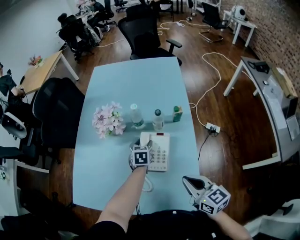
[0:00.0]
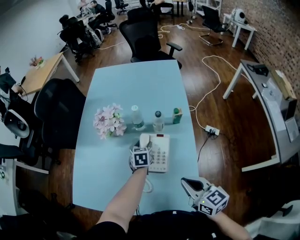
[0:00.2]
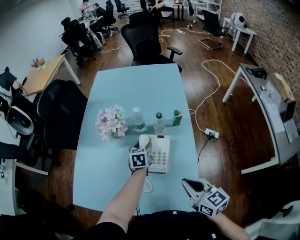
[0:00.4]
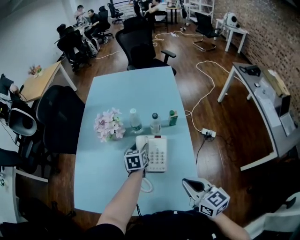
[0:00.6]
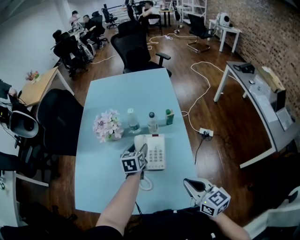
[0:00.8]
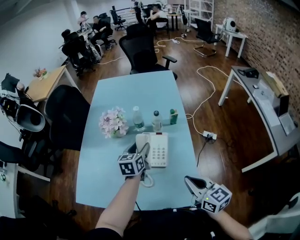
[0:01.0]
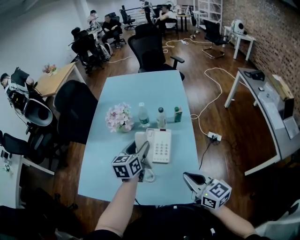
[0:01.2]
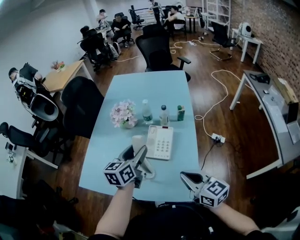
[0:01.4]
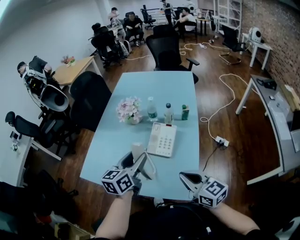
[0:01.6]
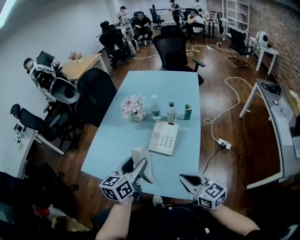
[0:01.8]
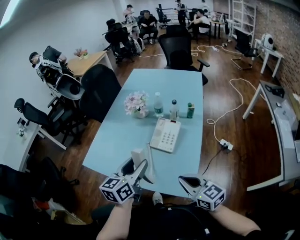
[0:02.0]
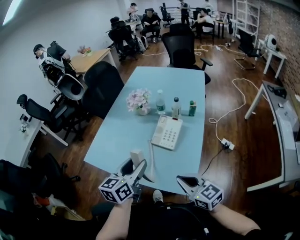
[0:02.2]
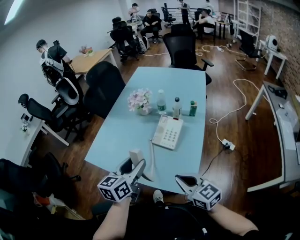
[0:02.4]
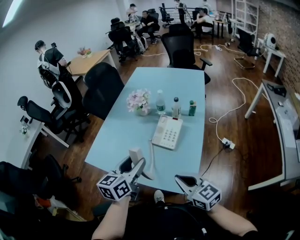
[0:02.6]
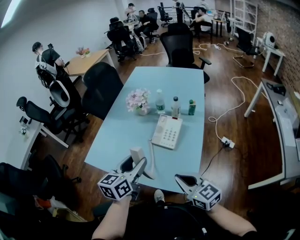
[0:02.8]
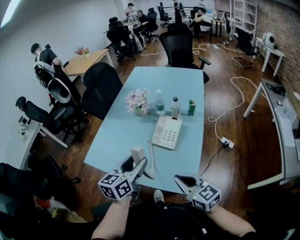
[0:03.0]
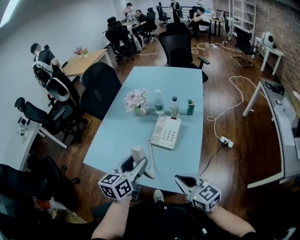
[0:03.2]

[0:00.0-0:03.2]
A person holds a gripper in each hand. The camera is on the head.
0:00.0 to 0:01.6: The left gripper goes some 35 cm backward and upward, and tips its fingers upward by approximately 30 degrees; the right gripper shifts some 10 cm backward and upward.
0:01.6 to 0:03.2: The left gripper goes roughly 10 cm backward. Meanwhile the right gripper shifts by approximately 5 cm.

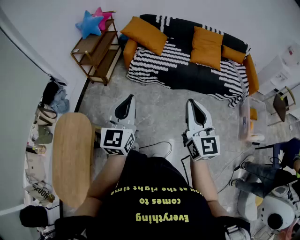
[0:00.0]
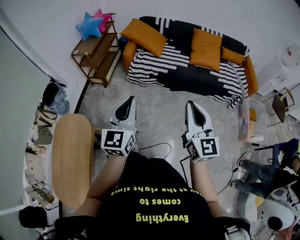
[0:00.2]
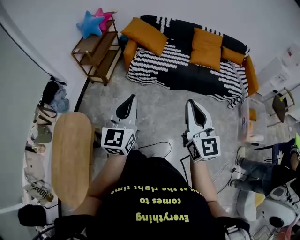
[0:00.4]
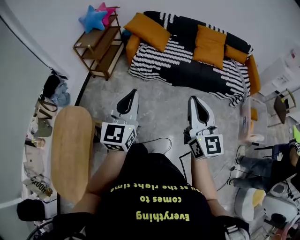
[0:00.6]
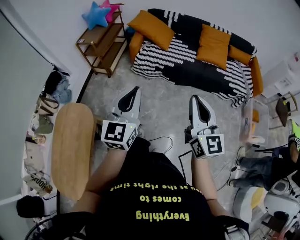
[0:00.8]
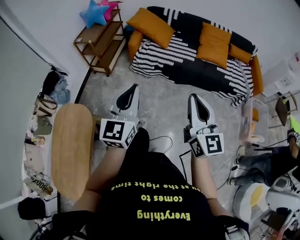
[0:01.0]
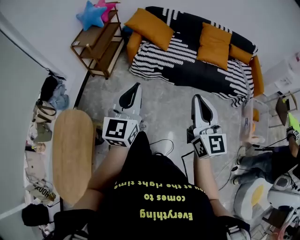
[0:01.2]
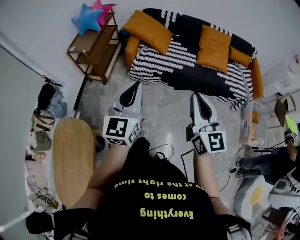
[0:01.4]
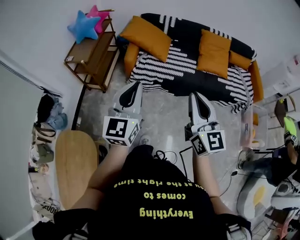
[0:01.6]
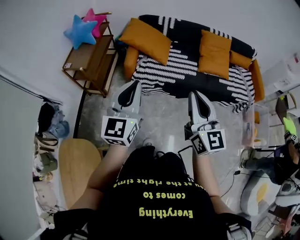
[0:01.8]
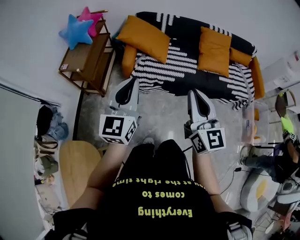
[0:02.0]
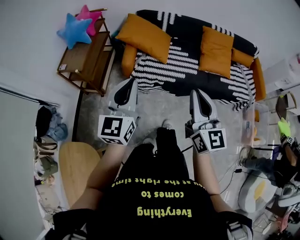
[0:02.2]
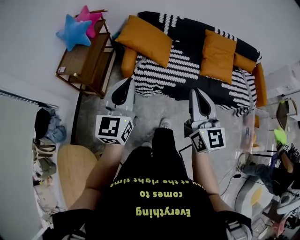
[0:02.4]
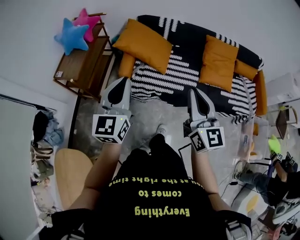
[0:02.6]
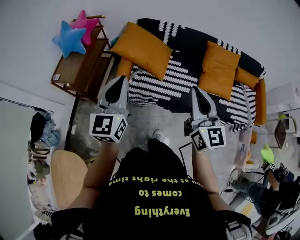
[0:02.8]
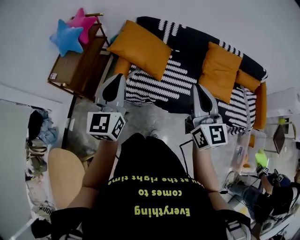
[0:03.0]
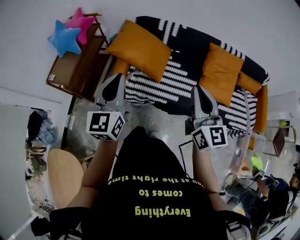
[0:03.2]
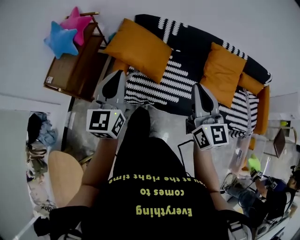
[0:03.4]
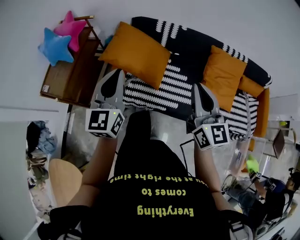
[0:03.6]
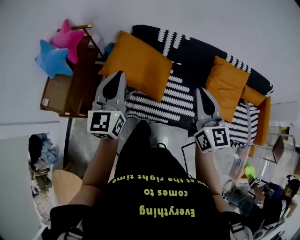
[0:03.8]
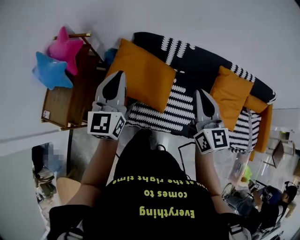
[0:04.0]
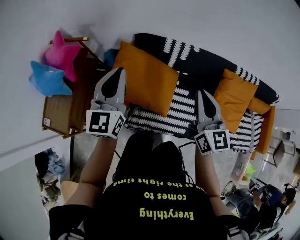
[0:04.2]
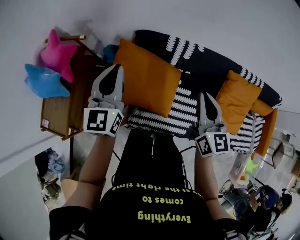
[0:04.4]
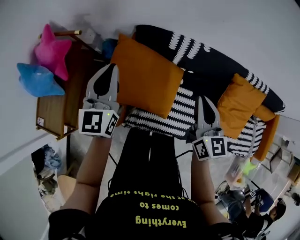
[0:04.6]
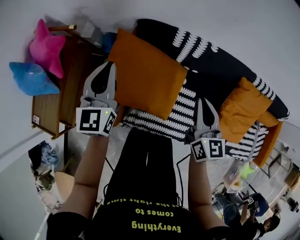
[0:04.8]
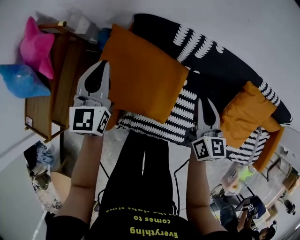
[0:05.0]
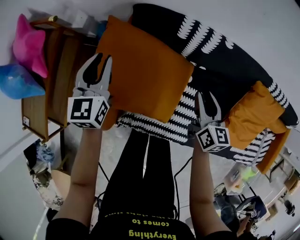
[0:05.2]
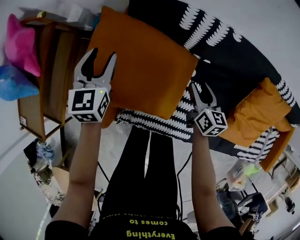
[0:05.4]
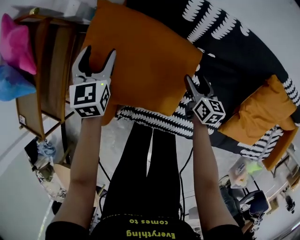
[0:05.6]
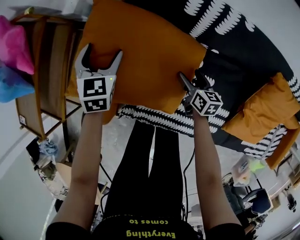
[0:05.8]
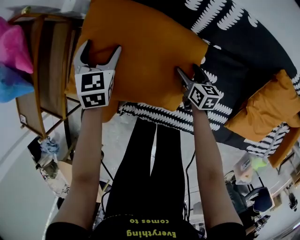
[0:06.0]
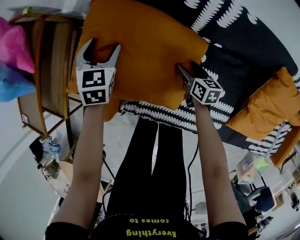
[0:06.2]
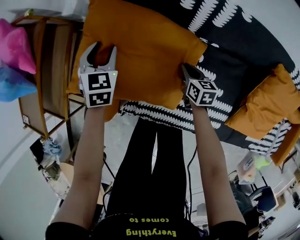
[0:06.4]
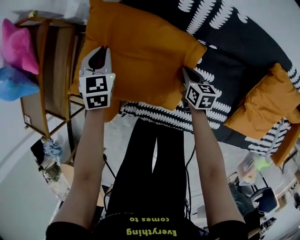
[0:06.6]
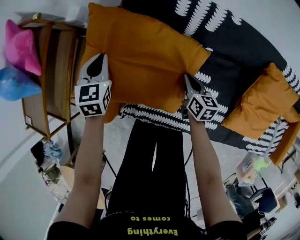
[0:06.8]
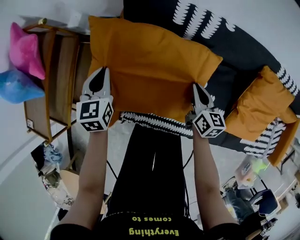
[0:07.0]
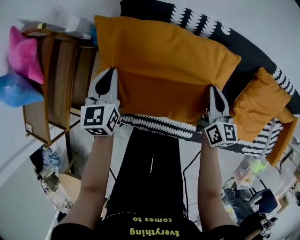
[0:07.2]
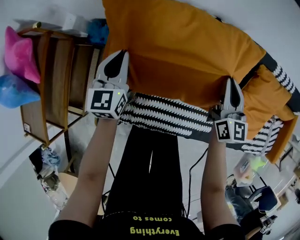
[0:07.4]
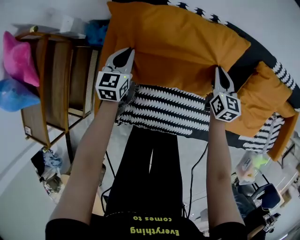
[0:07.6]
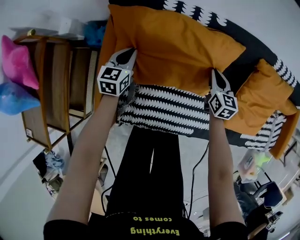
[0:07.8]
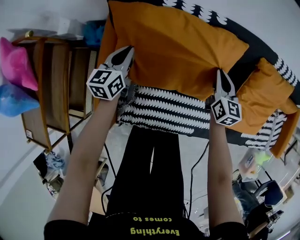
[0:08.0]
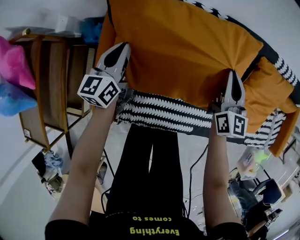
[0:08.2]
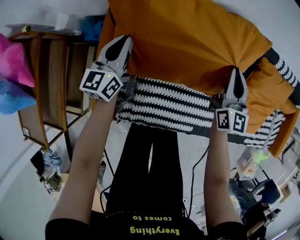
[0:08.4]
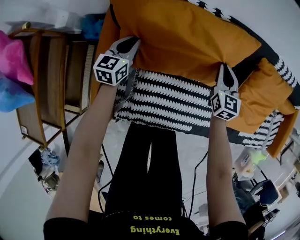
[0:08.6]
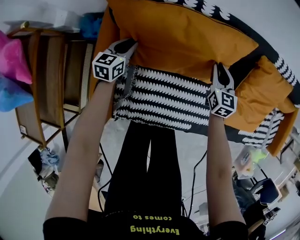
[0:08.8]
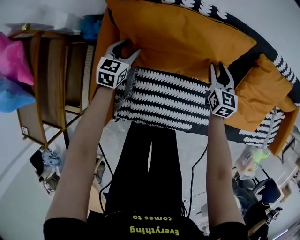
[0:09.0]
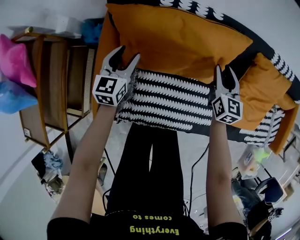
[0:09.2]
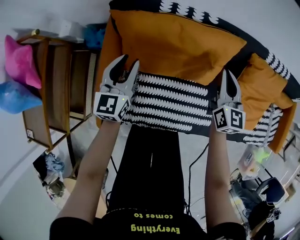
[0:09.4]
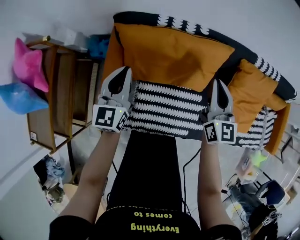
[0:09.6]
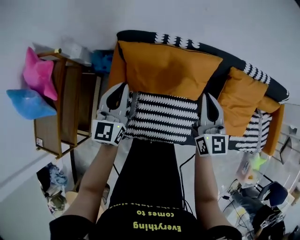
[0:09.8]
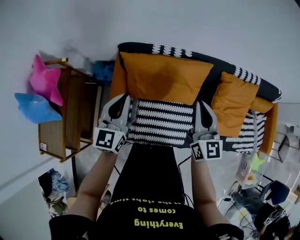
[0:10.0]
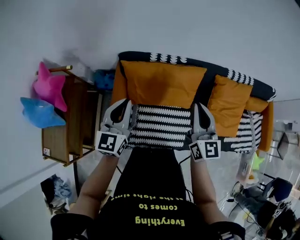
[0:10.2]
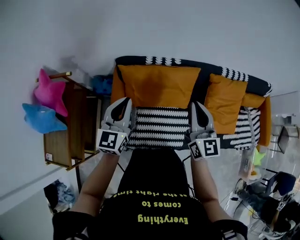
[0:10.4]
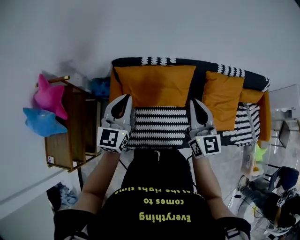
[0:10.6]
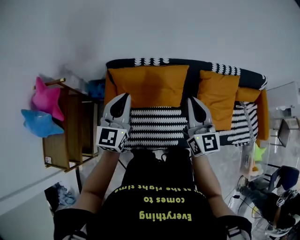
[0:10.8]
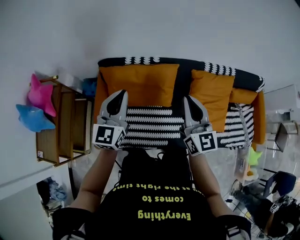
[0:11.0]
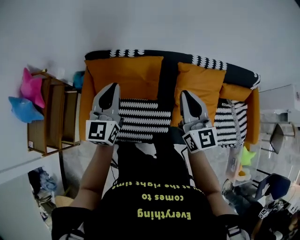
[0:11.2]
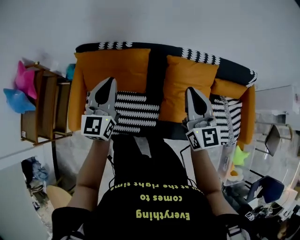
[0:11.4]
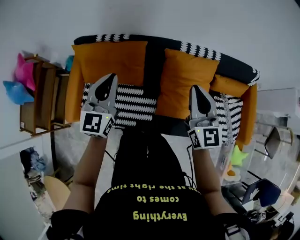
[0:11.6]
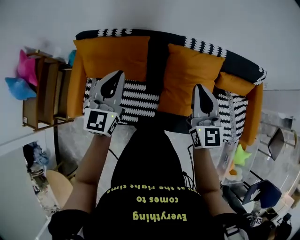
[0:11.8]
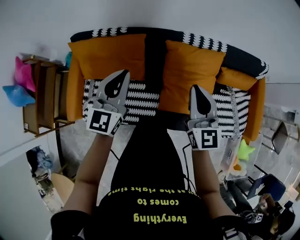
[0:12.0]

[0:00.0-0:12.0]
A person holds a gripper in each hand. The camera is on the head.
0:00.0 to 0:01.6: The left gripper travels forward by some 25 cm. Meanwhile the right gripper shifts about 25 cm forward and to the left.
0:01.6 to 0:03.0: The two grippers go some 35 cm forward.
0:03.0 to 0:04.4: The two grippers travel together, forward, approximately 50 cm.
0:04.4 to 0:06.0: The two grippers go about 50 cm downward. The left gripper points its fingers some 40 degrees further downward, and opens up, while the right gripper rotates some 40 degrees, and opens.
0:06.0 to 0:07.6: The right gripper goes approximately 15 cm upward, rotates roughly 30 degrees, and closes. Meanwhile the left gripper reaches about 10 cm upward, then returns, changes its angle by some 30 degrees, and closes its fingers.
0:07.6 to 0:09.0: The left gripper moves downward, some 5 cm, and opens up, while the right gripper moves up and down over roughly 15 cm, changing direction 2 times, and opens its fingers.
0:09.0 to 0:10.4: Both grippers travel together upward, approximately 40 cm. The right gripper changes its angle by roughly 30 degrees, and closes up. The left gripper changes its angle by some 30 degrees, and closes its fingers.
0:10.4 to 0:12.0: The two grippers go approximately 40 cm to the right.

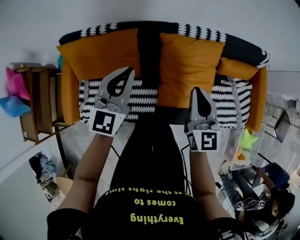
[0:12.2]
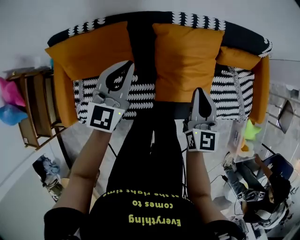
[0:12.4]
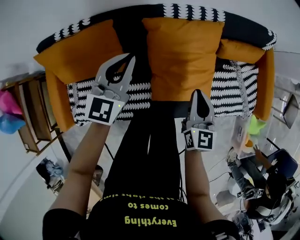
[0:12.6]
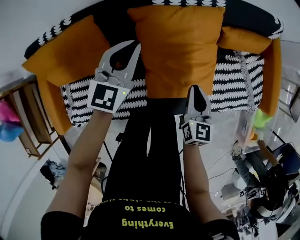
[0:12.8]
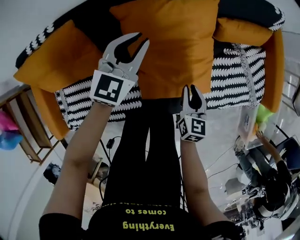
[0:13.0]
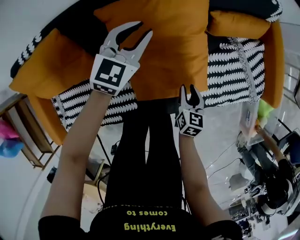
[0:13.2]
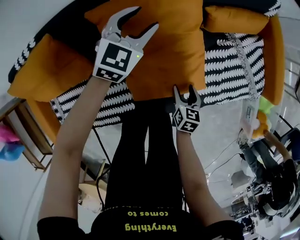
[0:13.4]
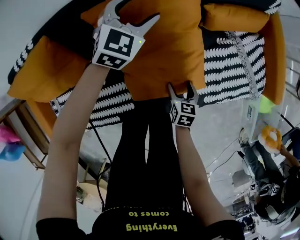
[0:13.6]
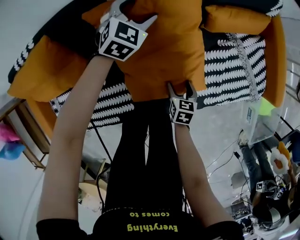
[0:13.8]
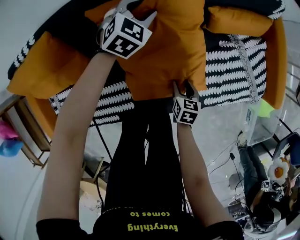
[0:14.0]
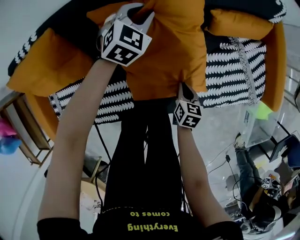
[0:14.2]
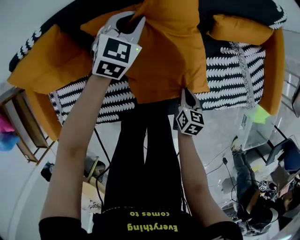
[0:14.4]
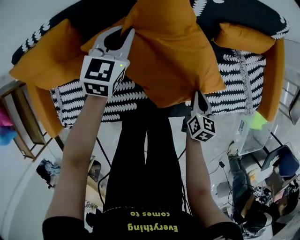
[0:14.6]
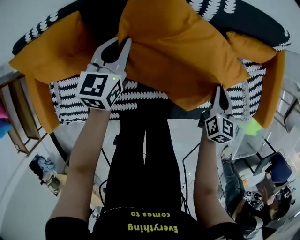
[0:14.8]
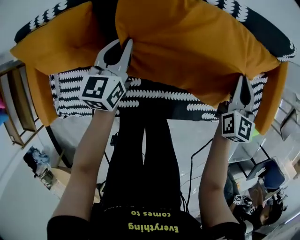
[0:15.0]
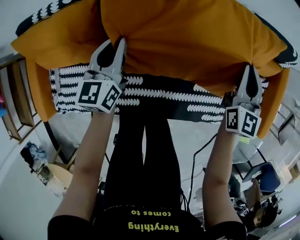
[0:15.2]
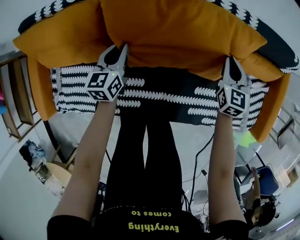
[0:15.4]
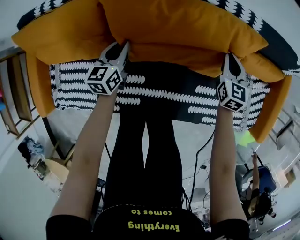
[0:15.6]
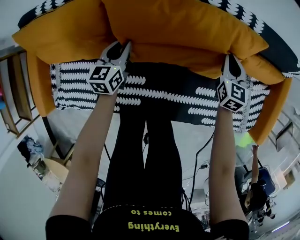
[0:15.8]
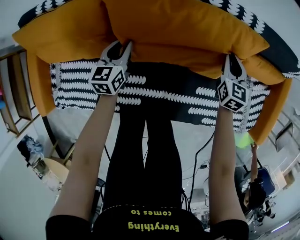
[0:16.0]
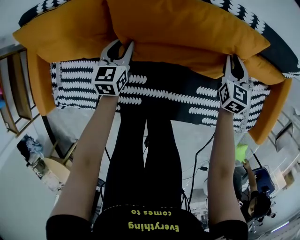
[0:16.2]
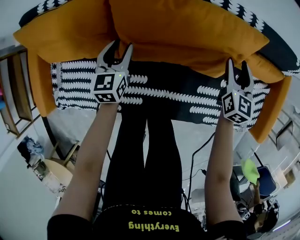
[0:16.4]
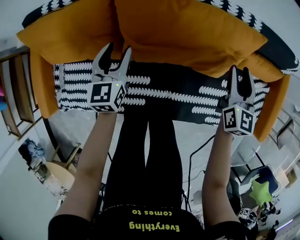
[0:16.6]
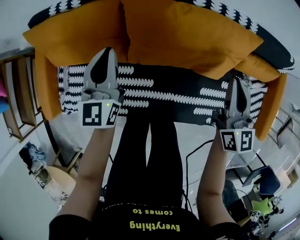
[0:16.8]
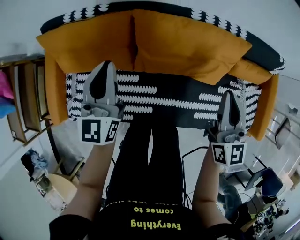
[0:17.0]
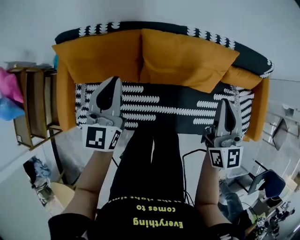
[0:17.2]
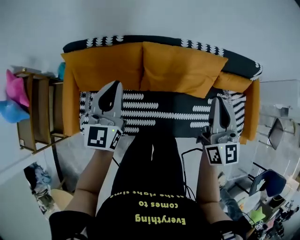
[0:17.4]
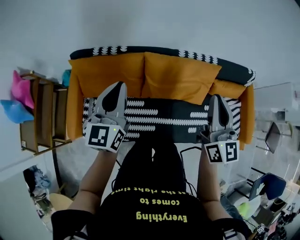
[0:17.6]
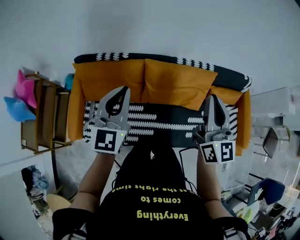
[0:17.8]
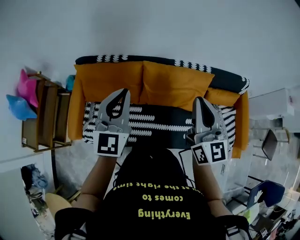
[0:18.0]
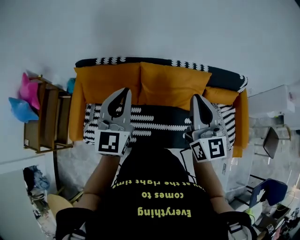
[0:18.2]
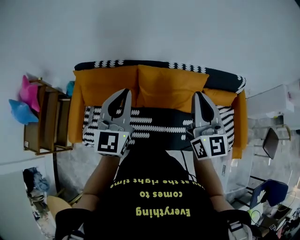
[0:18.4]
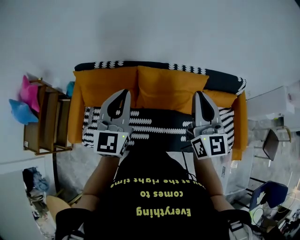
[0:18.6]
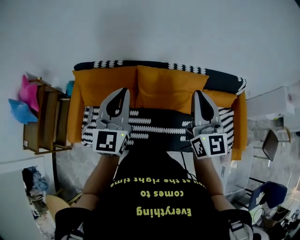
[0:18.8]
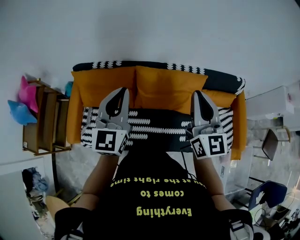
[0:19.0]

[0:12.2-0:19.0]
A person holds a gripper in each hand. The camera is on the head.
0:12.2 to 0:13.6: The left gripper is displaced downward, forward and to the right by about 50 cm, turns by approximately 40 degrees, and opens; the right gripper is displaced downward by some 50 cm, points its fingers roughly 40 degrees further downward, and opens.
0:13.6 to 0:15.0: The right gripper shifts some 35 cm upward and forward, angles its fingers upward, by some 30 degrees, and closes its fingers; the left gripper moves to the left and backward, roughly 20 cm, rotates around the line of its fingers by about 50 degrees, counterclockwise from behind, and closes up.
0:15.0 to 0:16.2: The left gripper heads downward and to the left, covering about 15 cm. The right gripper travels downward, to the left and forward by roughly 15 cm.
0:16.2 to 0:17.6: The two grippers go roughly 50 cm upward. The right gripper tilts its fingers roughly 40 degrees upward, and opens, then closes again, while the left gripper angles its fingers upward, by some 30 degrees.
0:17.6 to 0:19.0: The right gripper travels upward by about 5 cm. The left gripper moves to the right and upward, some 10 cm.

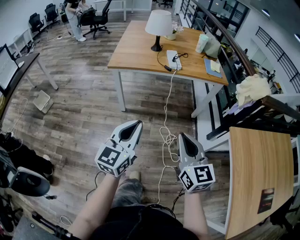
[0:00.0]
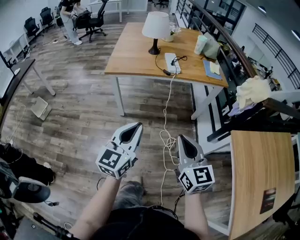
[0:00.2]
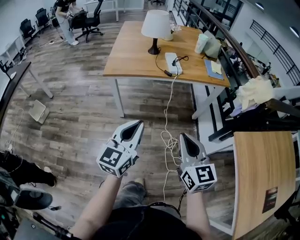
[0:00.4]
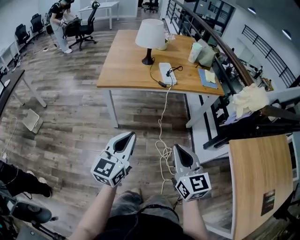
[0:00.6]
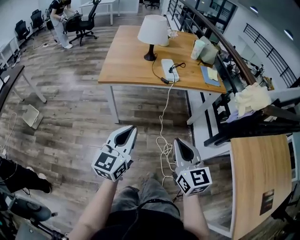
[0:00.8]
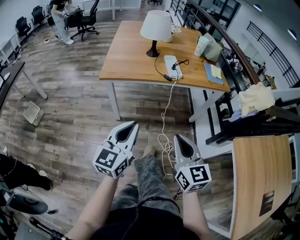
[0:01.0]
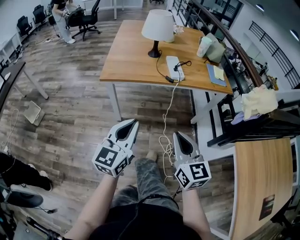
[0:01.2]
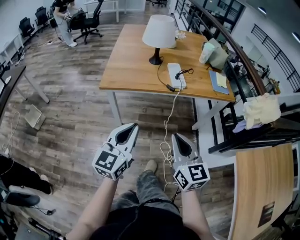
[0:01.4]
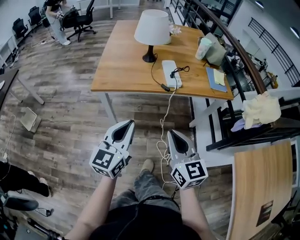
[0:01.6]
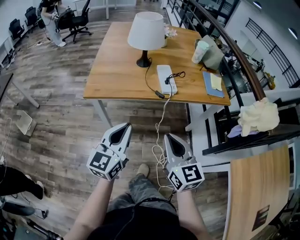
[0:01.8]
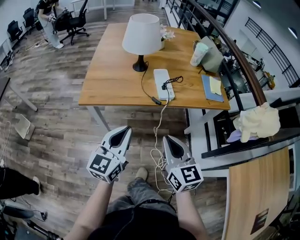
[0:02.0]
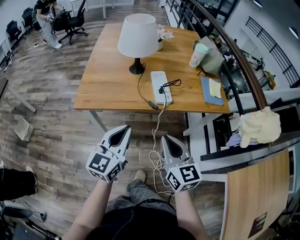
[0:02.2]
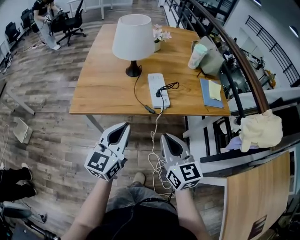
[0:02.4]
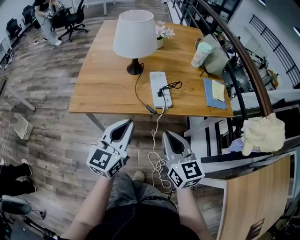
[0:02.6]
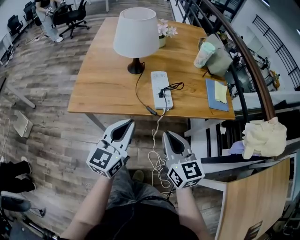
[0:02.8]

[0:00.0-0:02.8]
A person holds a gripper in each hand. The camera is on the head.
0:00.0 to 0:01.4: The two grippers go approximately 20 cm forward.
0:01.4 to 0:02.8: The grippers both shift forward by approximately 25 cm.
